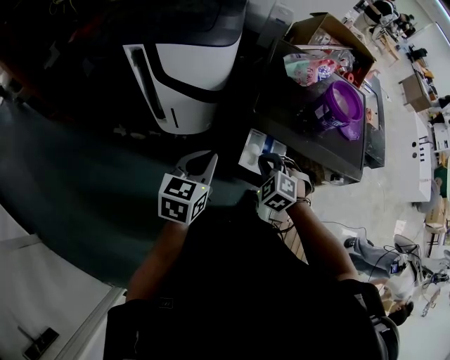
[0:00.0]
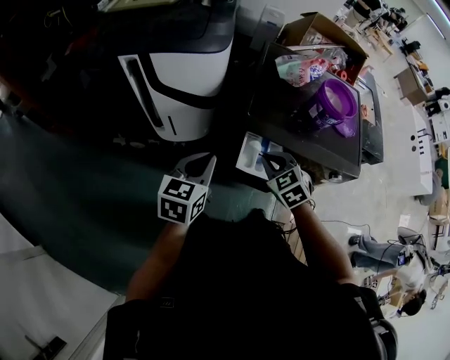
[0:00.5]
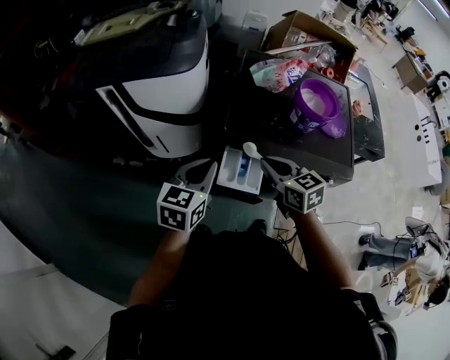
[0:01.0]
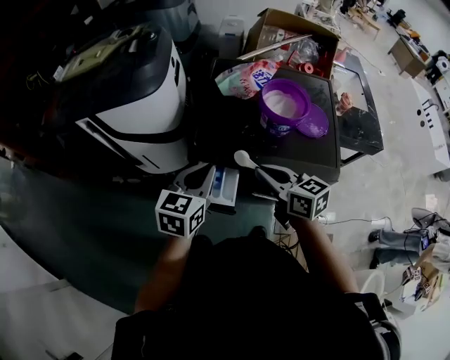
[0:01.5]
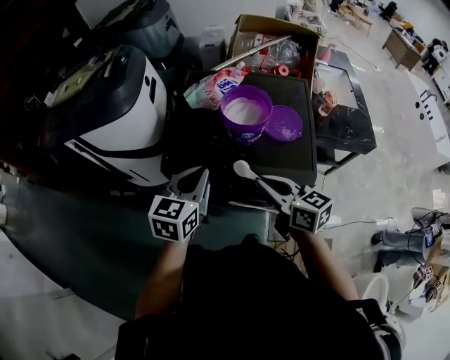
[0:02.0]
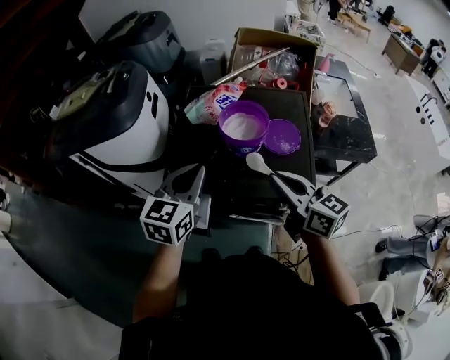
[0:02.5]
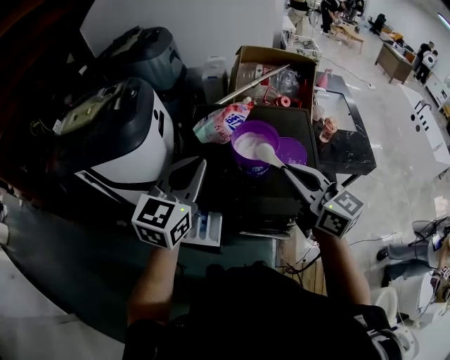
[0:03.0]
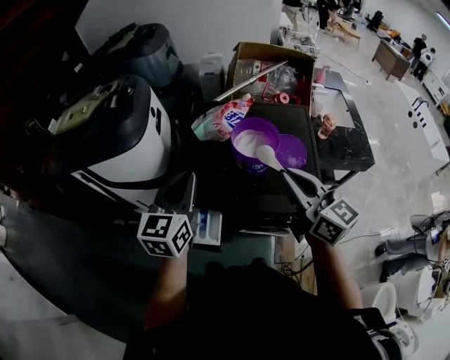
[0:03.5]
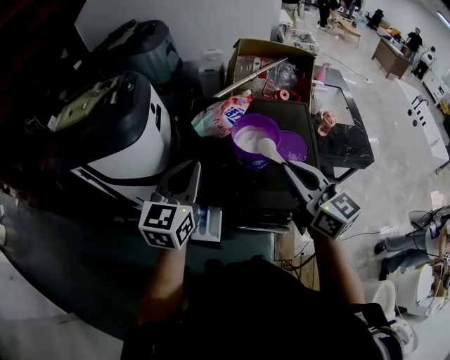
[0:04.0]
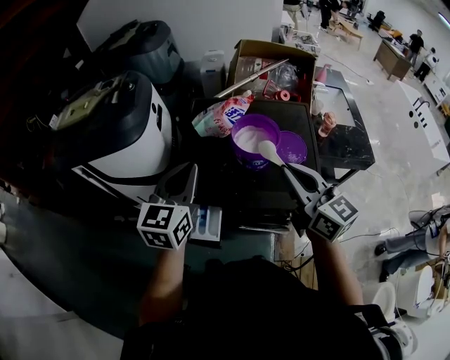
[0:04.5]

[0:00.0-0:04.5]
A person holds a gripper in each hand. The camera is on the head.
0:00.0 to 0:02.0: The left gripper travels to the right by roughly 30 cm; the right gripper moves to the right and upward, some 35 cm, and rolls clockwise, seen from behind, by approximately 70 degrees.
0:02.0 to 0:04.5: The two grippers go approximately 15 cm upward and forward. The right gripper rotates roughly 20 degrees.

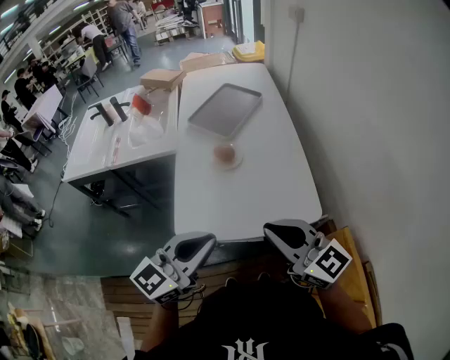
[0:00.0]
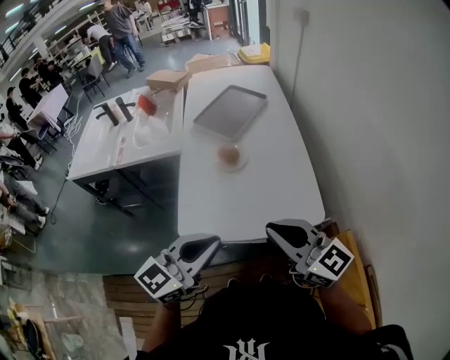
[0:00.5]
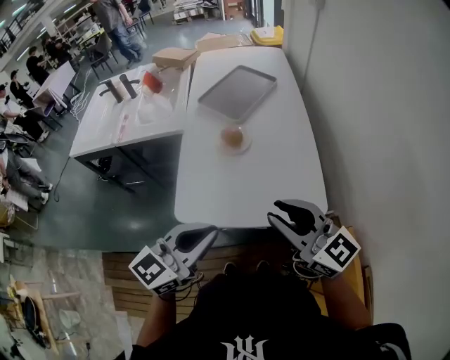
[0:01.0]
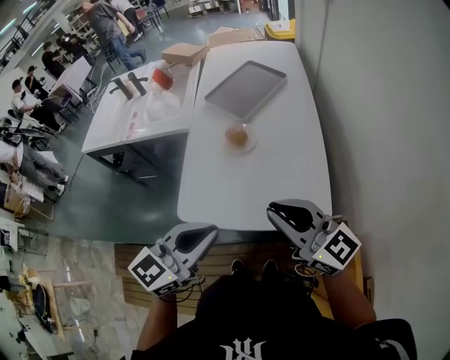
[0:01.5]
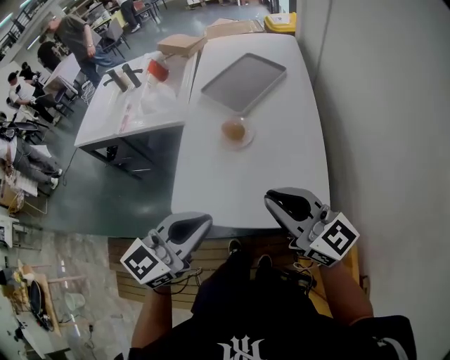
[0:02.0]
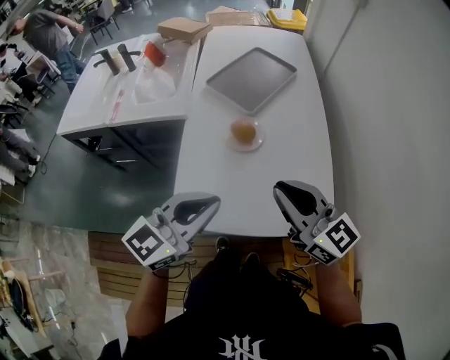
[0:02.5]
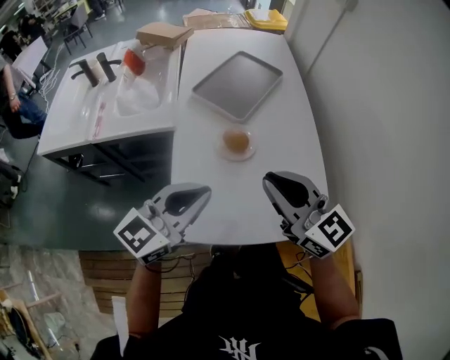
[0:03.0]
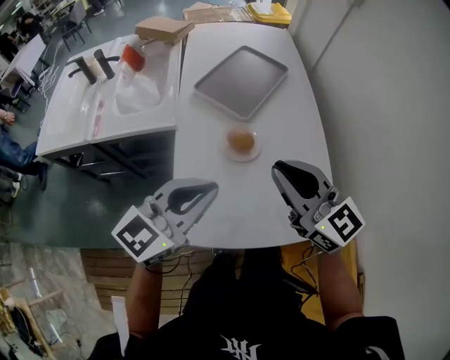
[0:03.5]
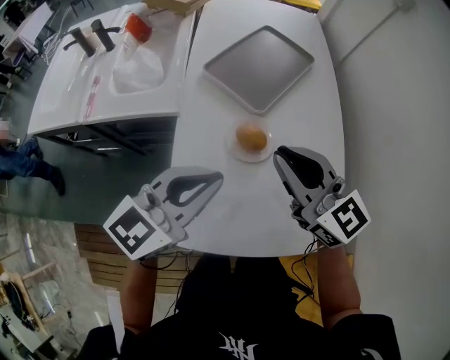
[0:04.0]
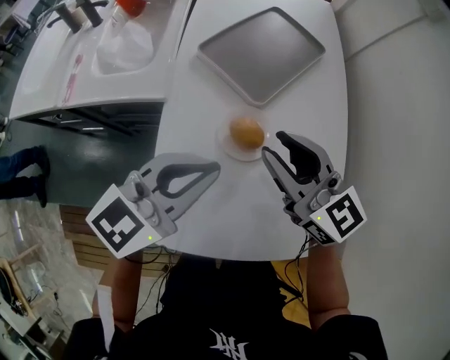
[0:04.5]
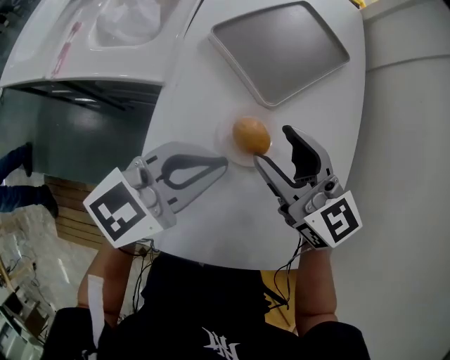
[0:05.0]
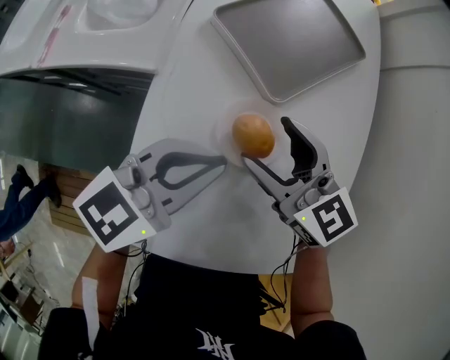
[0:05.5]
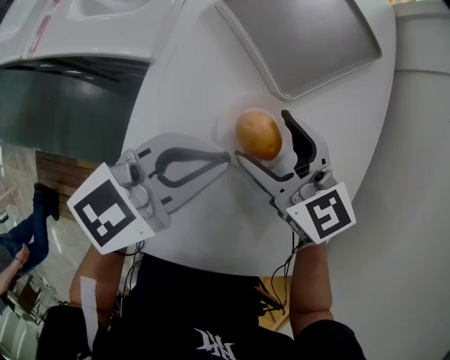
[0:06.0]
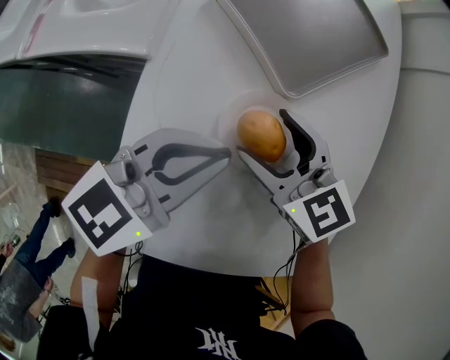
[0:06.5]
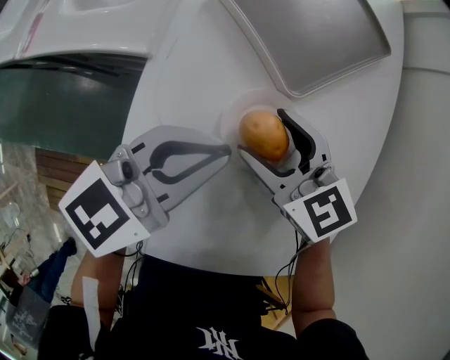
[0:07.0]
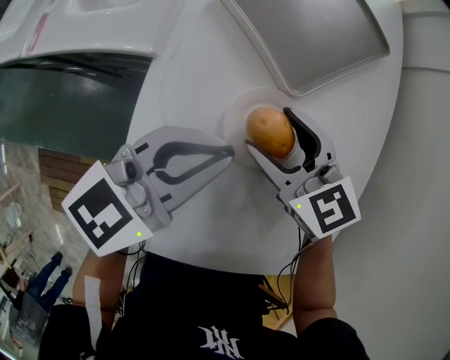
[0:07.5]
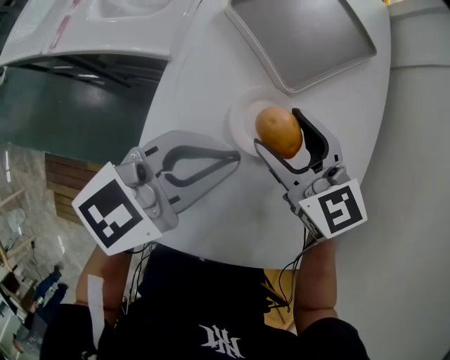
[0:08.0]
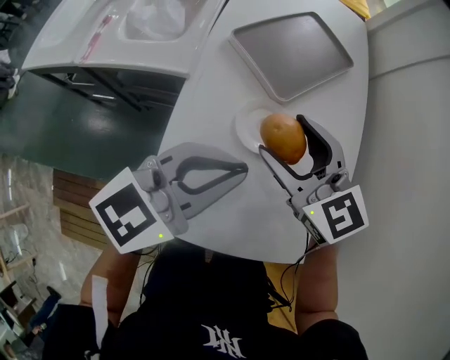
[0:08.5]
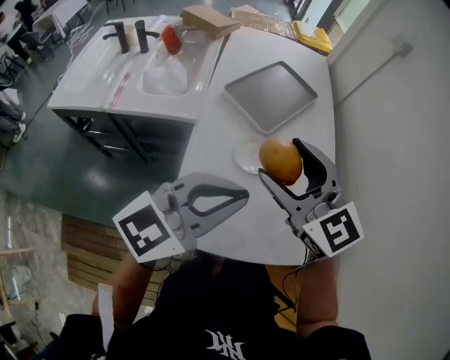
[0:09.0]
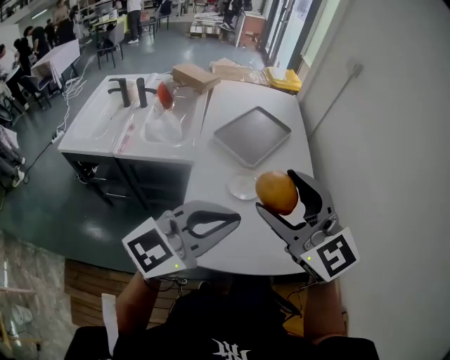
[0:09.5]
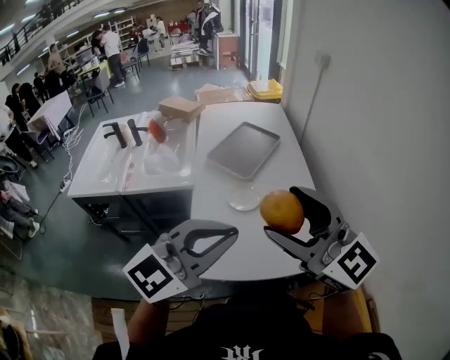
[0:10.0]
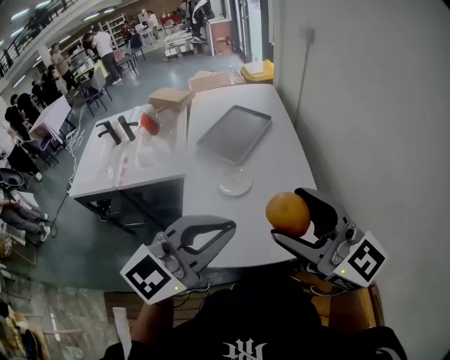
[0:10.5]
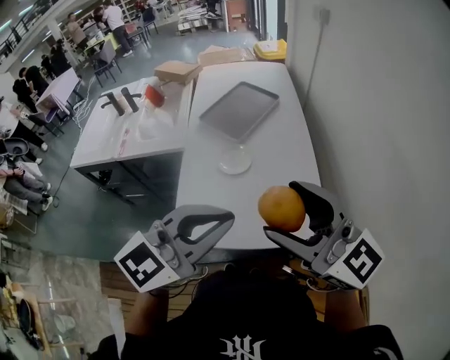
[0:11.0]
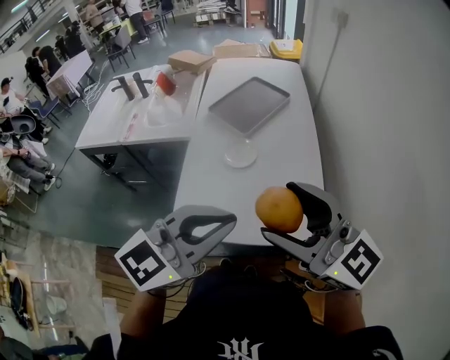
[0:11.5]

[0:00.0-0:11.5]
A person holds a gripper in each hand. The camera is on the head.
0:00.0 to 0:02.0: The right gripper travels forward by about 10 cm, while the left gripper changes place by some 5 cm.
0:02.0 to 0:04.0: The two grippers go some 25 cm forward and to the left.
0:04.0 to 0:06.0: Both grippers move downward and forward, some 20 cm. The right gripper turns by some 20 degrees, and opens up.
0:06.0 to 0:07.5: There are only small adjustments of the grippers.
0:07.5 to 0:09.5: Both grippers move upward and backward, about 40 cm. The right gripper tilts its fingers approximately 30 degrees upward; the left gripper rotates some 30 degrees.
0:09.5 to 0:11.5: Both grippers move to the right and backward, roughly 15 cm. The right gripper changes its angle by some 20 degrees.

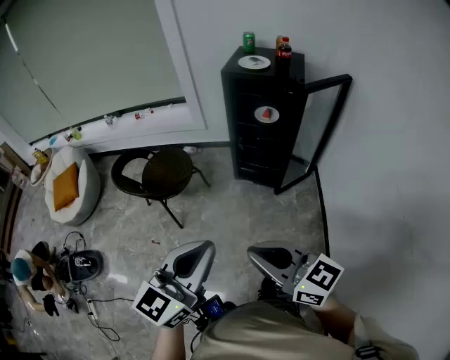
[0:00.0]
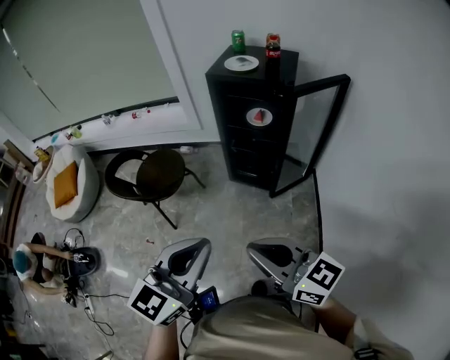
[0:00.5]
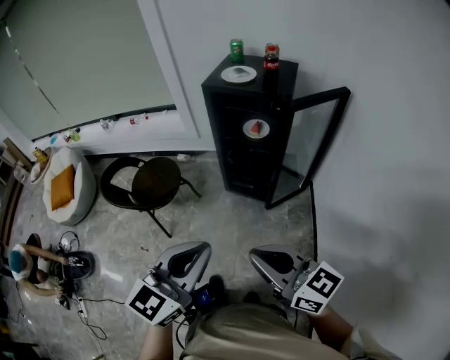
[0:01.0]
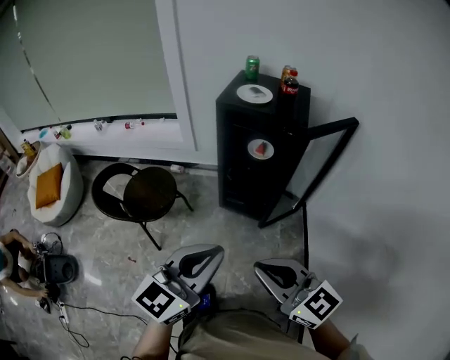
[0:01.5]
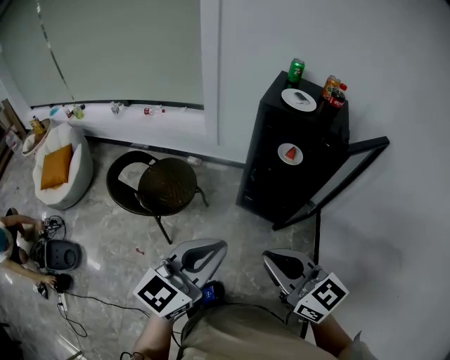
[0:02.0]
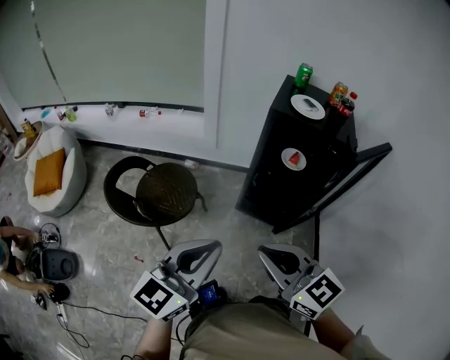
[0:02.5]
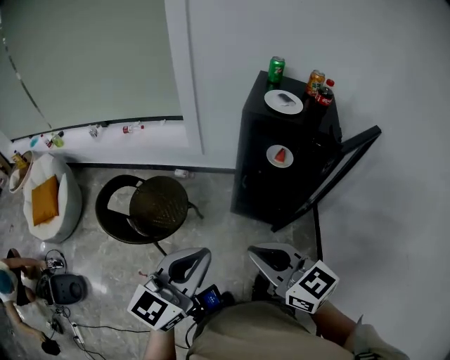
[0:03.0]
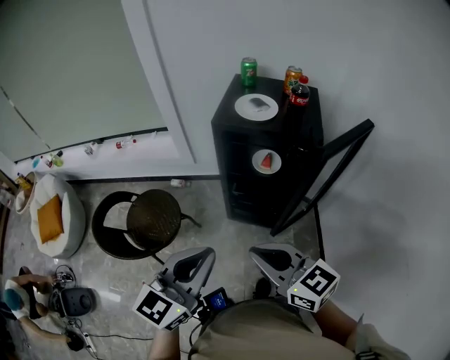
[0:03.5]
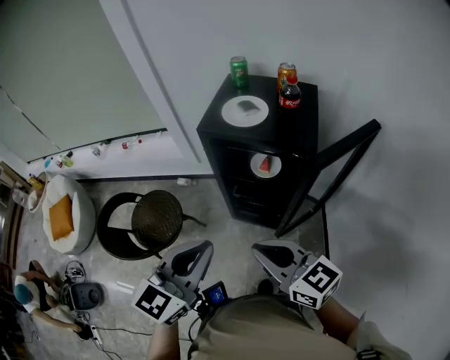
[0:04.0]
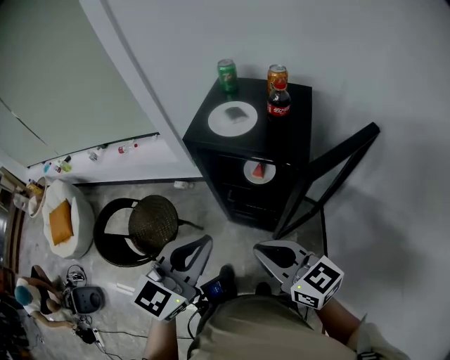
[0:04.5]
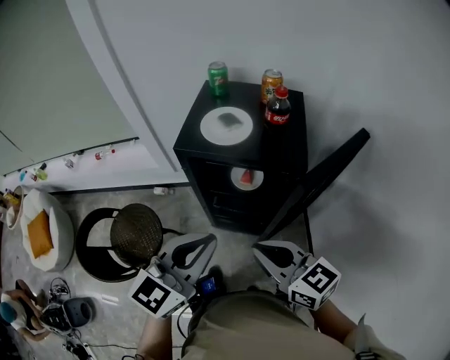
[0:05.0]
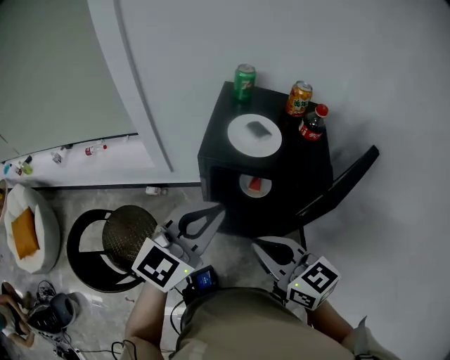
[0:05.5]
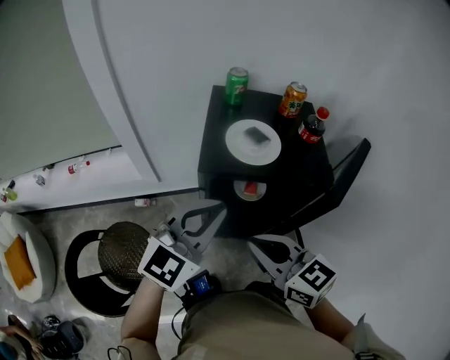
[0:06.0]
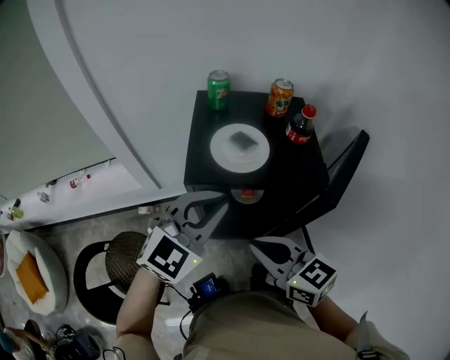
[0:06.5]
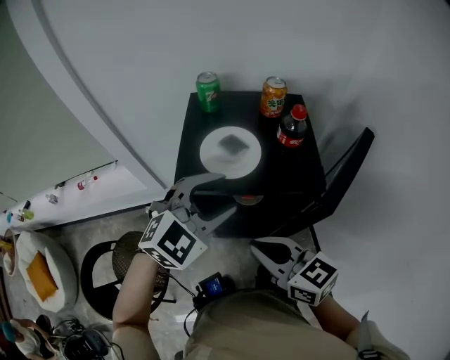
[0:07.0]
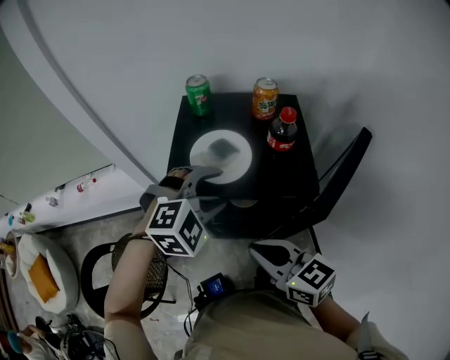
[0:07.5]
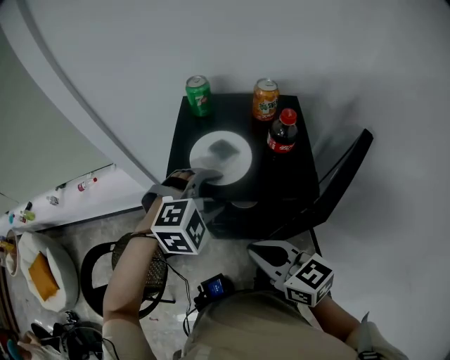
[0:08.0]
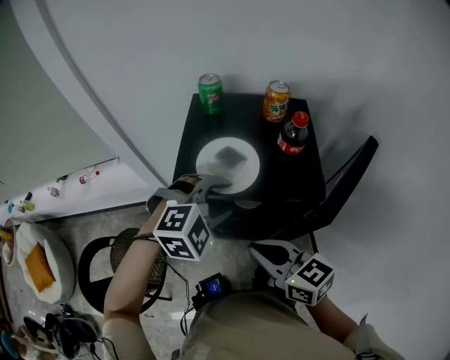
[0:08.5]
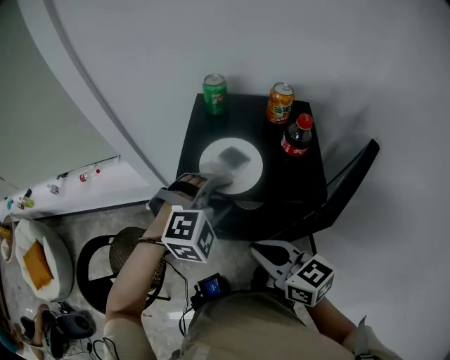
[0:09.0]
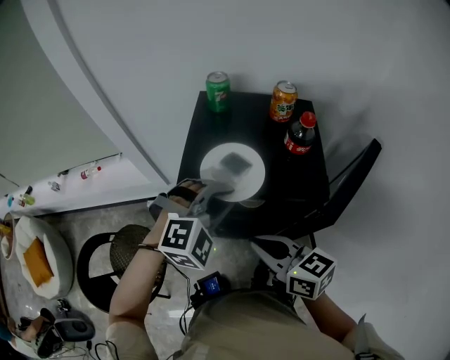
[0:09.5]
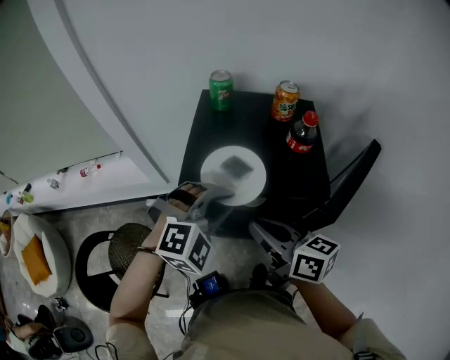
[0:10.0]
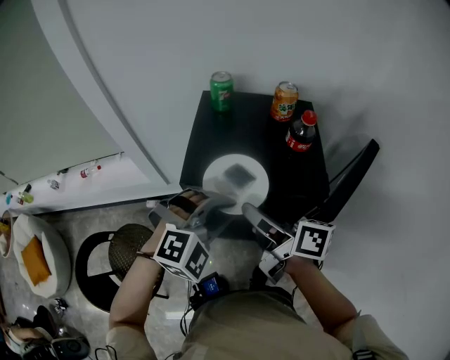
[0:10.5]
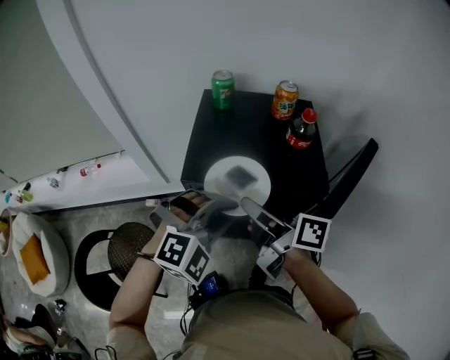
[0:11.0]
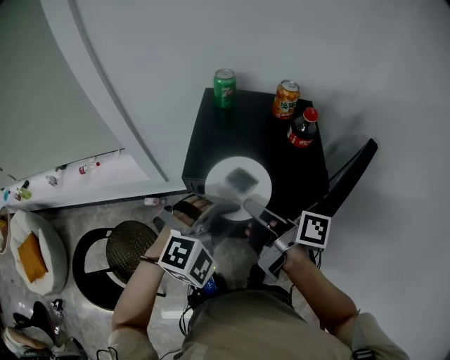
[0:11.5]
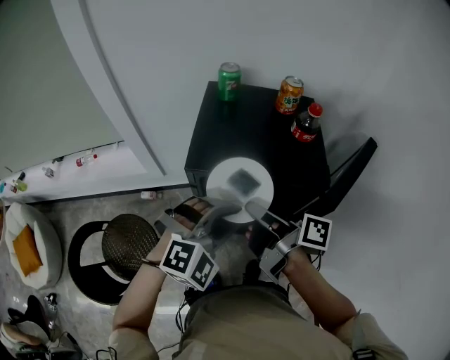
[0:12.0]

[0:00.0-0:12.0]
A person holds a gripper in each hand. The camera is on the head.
0:00.0 to 0:02.0: Both grippers travel together forward, roughly 20 cm.
0:02.0 to 0:04.0: Both grippers travel together forward and to the right, some 20 cm.
0:04.0 to 0:06.0: The left gripper travels forward by roughly 25 cm, and swivels approximately 30 degrees. Meanwhile the right gripper goes about 20 cm forward and to the left, and turns by about 20 degrees.
0:06.0 to 0:08.0: The right gripper travels to the right by roughly 10 cm, while the left gripper travels forward, to the right and downward by roughly 15 cm, angles its fingers downward, by approximately 40 degrees, and opens.
0:08.0 to 0:10.0: The right gripper moves about 5 cm, and swivels approximately 20 degrees. Meanwhile the left gripper closes up.
0:10.0 to 0:12.0: The left gripper travels backward by some 5 cm. The right gripper rolls clockwise, seen from behind, by roughly 40 degrees, and opens and closes again.
